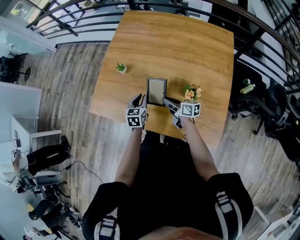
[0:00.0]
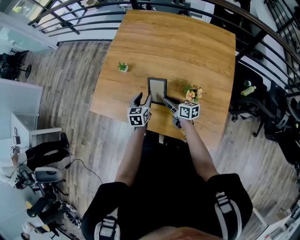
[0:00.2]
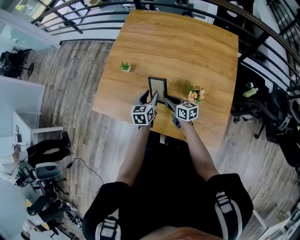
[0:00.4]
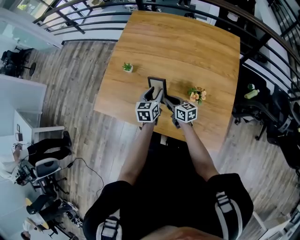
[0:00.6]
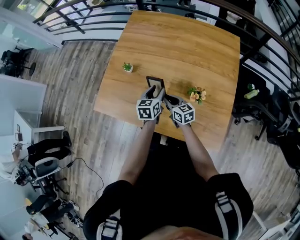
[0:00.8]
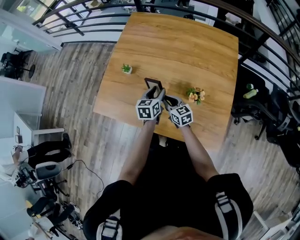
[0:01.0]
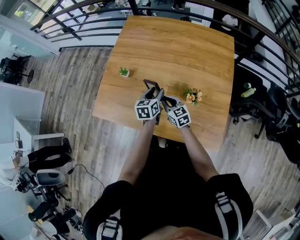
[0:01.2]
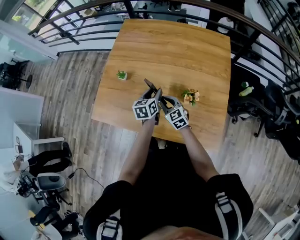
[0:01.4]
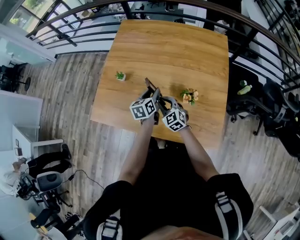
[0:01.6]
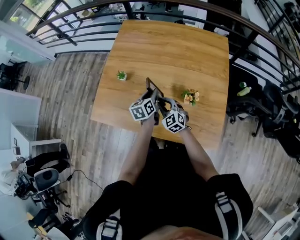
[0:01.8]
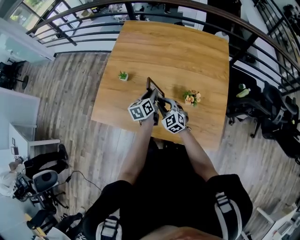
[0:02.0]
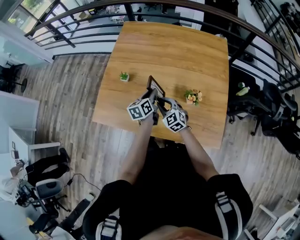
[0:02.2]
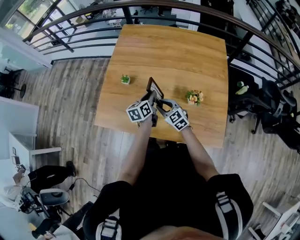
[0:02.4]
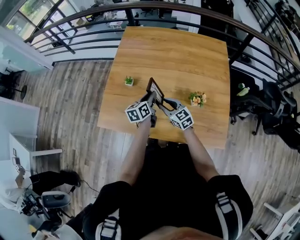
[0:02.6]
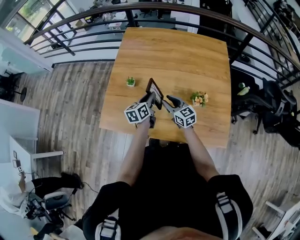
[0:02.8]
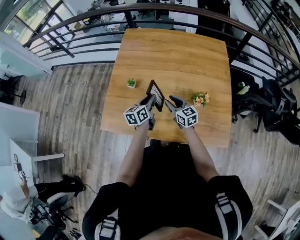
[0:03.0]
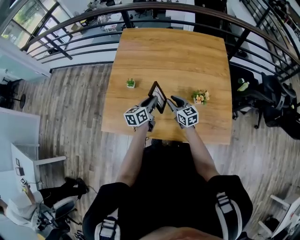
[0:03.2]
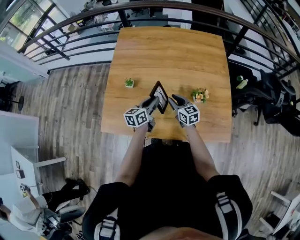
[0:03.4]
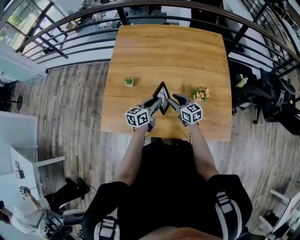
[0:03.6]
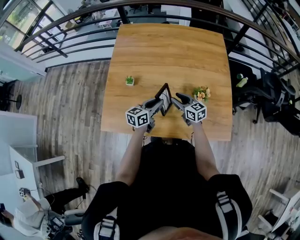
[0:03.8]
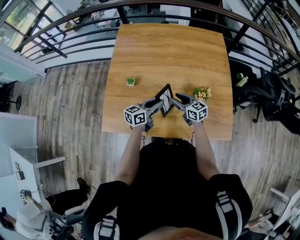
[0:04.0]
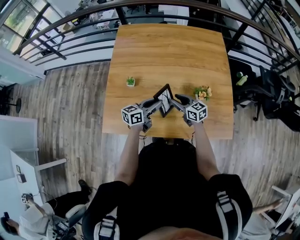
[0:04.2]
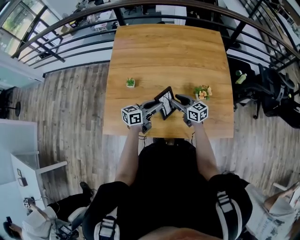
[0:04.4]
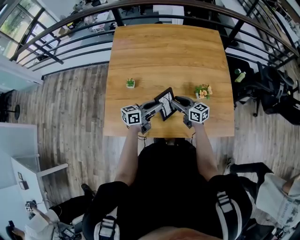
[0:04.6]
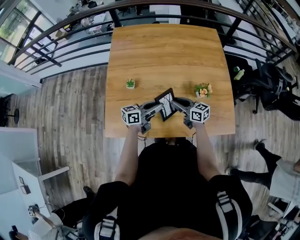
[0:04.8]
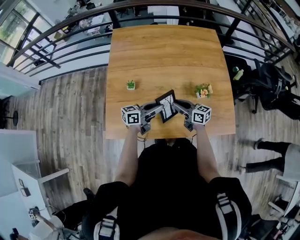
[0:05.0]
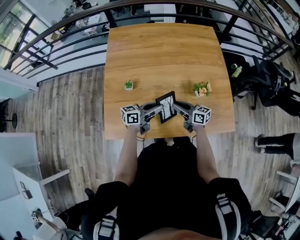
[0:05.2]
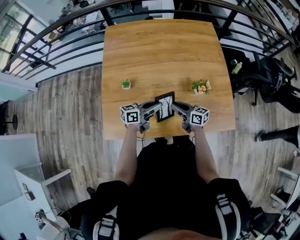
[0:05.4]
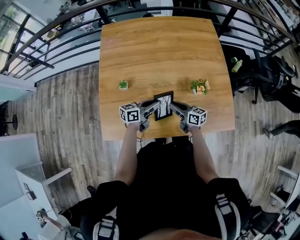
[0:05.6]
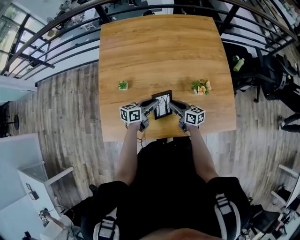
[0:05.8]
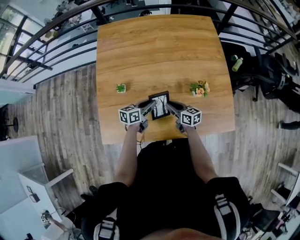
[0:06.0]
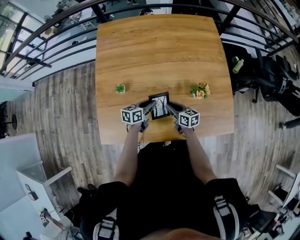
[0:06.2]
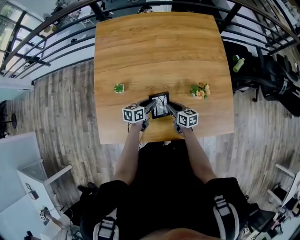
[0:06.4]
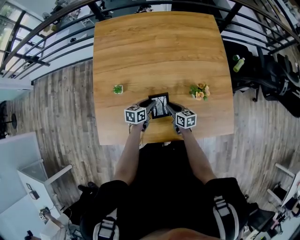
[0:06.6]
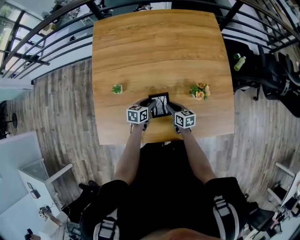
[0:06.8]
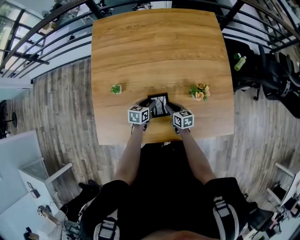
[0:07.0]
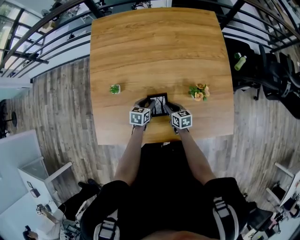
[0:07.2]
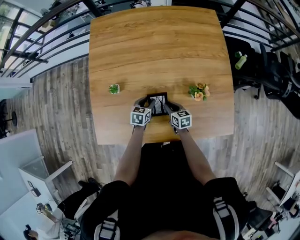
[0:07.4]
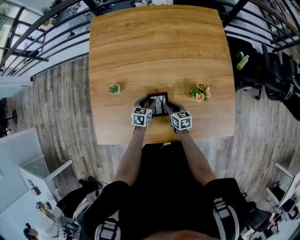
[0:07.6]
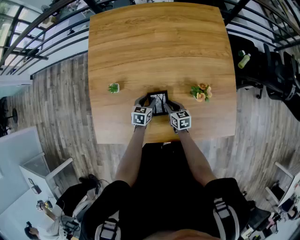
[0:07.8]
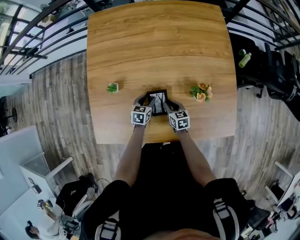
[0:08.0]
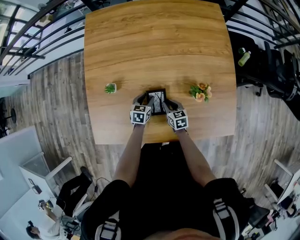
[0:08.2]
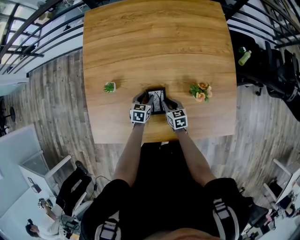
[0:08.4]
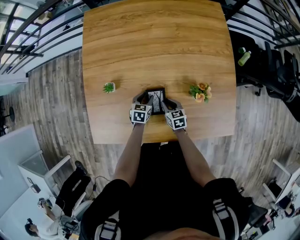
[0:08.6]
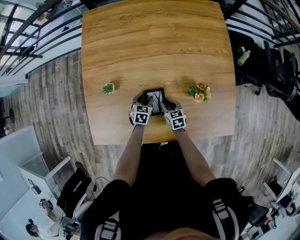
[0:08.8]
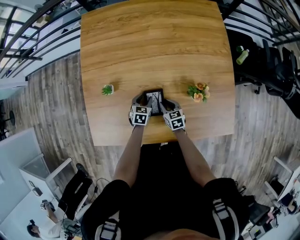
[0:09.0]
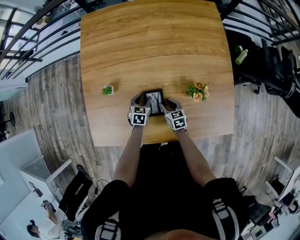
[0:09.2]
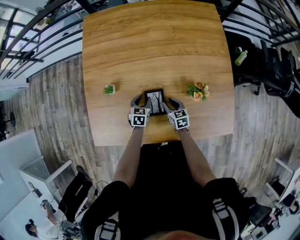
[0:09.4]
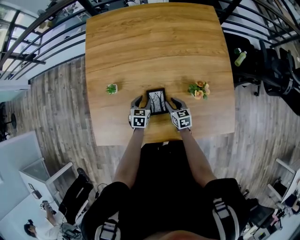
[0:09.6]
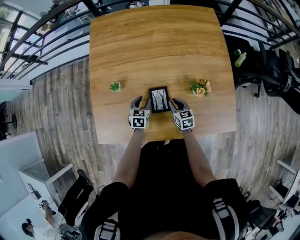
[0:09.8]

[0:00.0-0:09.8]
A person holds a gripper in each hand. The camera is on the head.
0:00.0 to 0:01.4: The left gripper shifts some 10 cm to the right and upward, and opens up. The right gripper moves some 5 cm, and rotates around the line of its fingers by about 60 degrees, counterclockwise from behind.
0:01.4 to 0:02.8: The right gripper heads to the left, covering about 5 cm, while the left gripper moves to the left, roughly 10 cm, and closes its fingers.
0:02.8 to 0:04.2: The left gripper changes its angle by about 40 degrees.
0:04.2 to 0:05.6: The right gripper changes place by about 5 cm, and changes its angle by about 30 degrees.
0:05.6 to 0:07.0: The left gripper is displaced downward and forward by about 15 cm, and tilts its fingers approximately 30 degrees downward, while the right gripper travels downward by approximately 10 cm, and rotates some 30 degrees.
0:07.0 to 0:08.4: The left gripper shifts by roughly 5 cm.
0:08.4 to 0:09.8: The left gripper ends up roughly 5 cm from where it was.

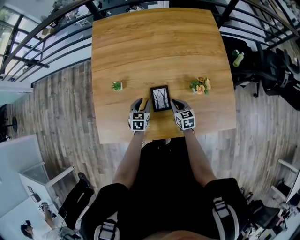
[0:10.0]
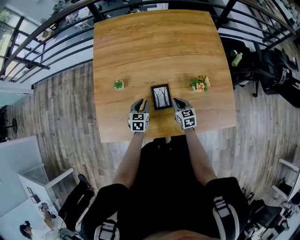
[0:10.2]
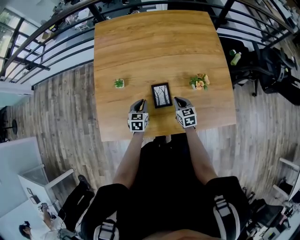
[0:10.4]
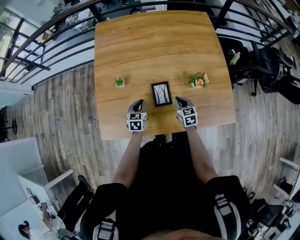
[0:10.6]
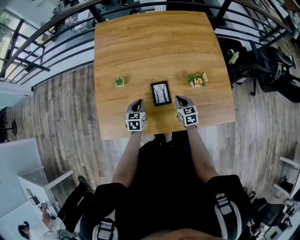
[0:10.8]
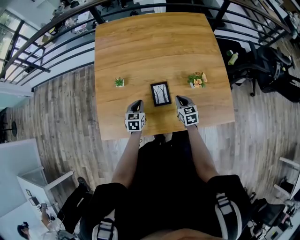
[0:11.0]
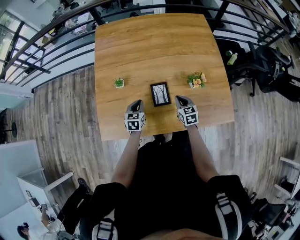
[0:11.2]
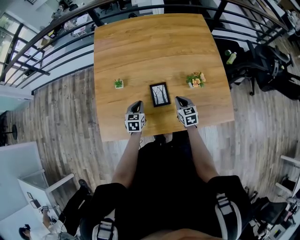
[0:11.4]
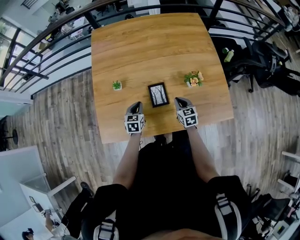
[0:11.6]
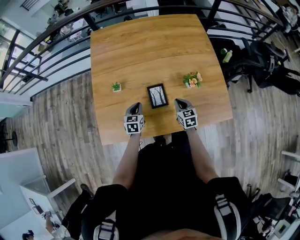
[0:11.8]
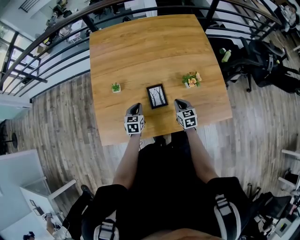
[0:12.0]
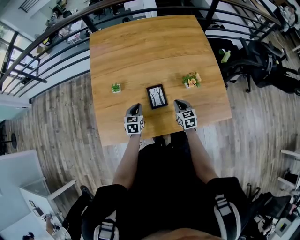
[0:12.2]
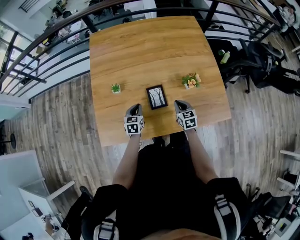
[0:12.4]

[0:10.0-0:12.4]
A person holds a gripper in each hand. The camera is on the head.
0:10.0 to 0:11.2: The right gripper shifts by some 5 cm. The left gripper ends up approximately 5 cm from where it was, and closes.
0:11.2 to 0:12.4: The grippers make only small movements.

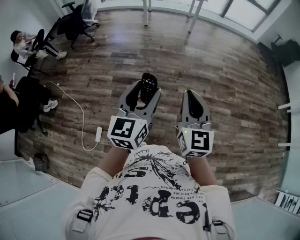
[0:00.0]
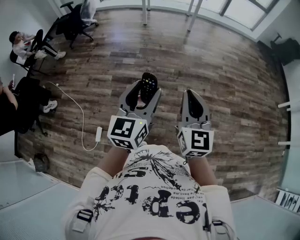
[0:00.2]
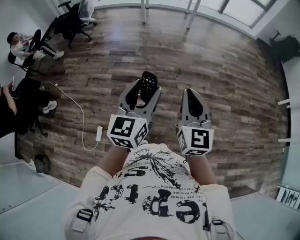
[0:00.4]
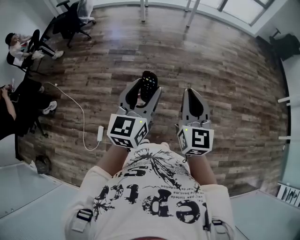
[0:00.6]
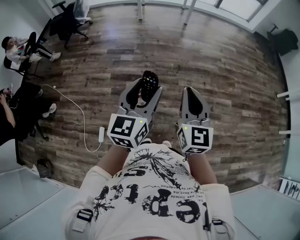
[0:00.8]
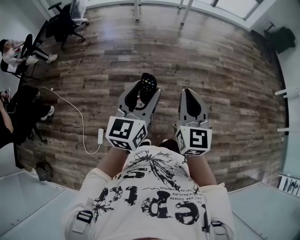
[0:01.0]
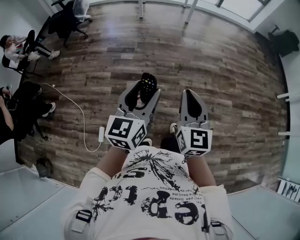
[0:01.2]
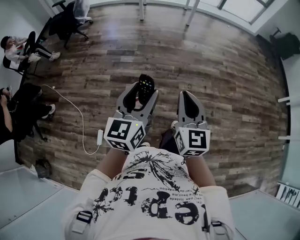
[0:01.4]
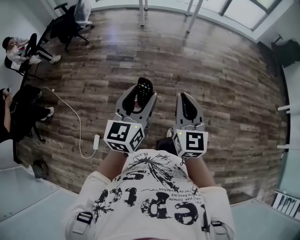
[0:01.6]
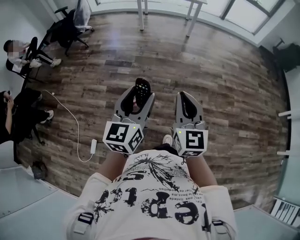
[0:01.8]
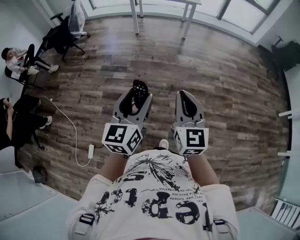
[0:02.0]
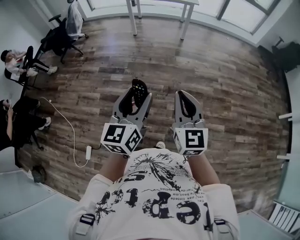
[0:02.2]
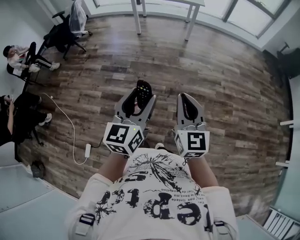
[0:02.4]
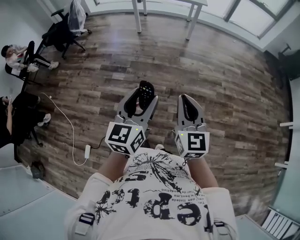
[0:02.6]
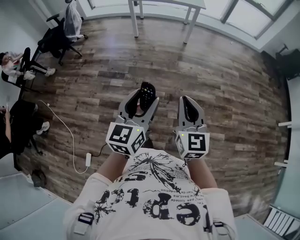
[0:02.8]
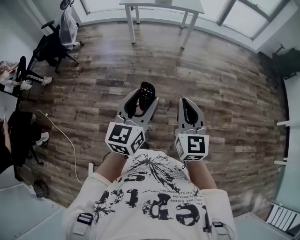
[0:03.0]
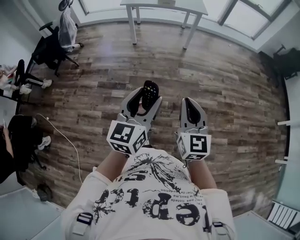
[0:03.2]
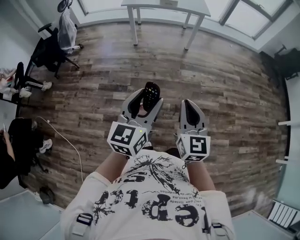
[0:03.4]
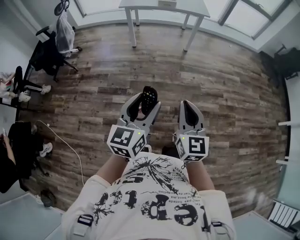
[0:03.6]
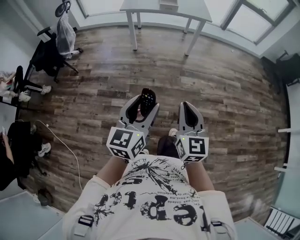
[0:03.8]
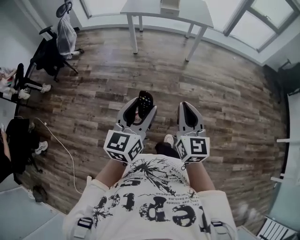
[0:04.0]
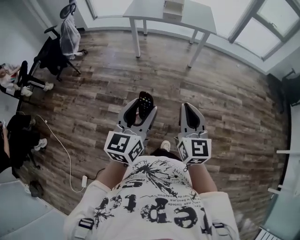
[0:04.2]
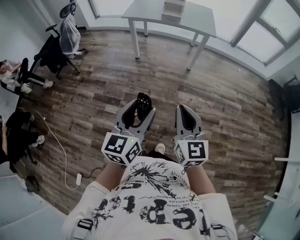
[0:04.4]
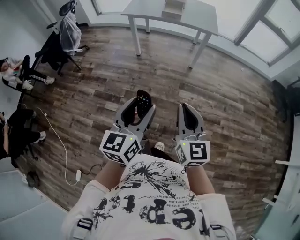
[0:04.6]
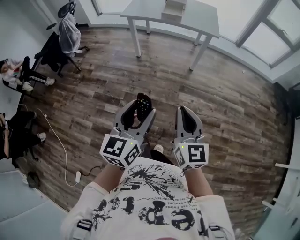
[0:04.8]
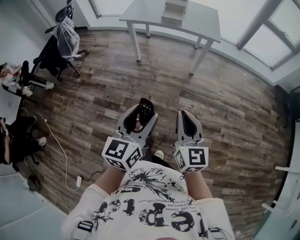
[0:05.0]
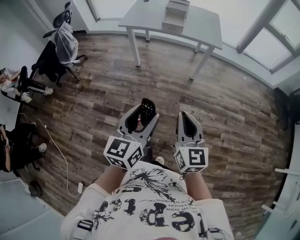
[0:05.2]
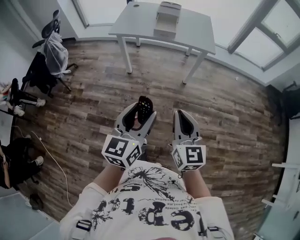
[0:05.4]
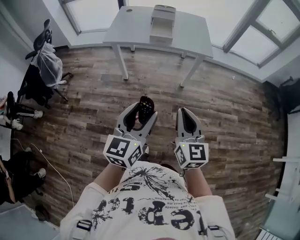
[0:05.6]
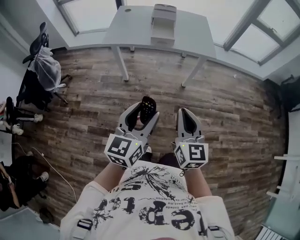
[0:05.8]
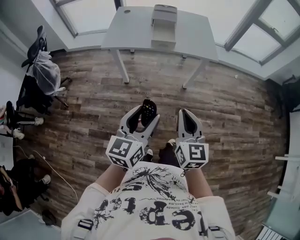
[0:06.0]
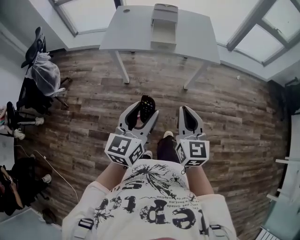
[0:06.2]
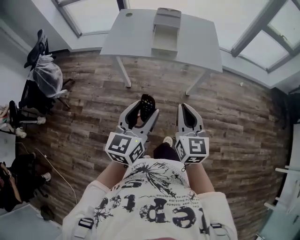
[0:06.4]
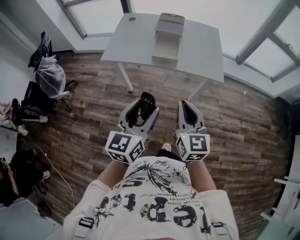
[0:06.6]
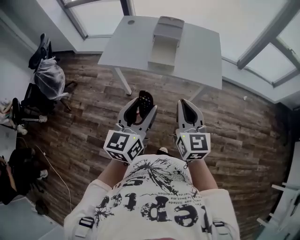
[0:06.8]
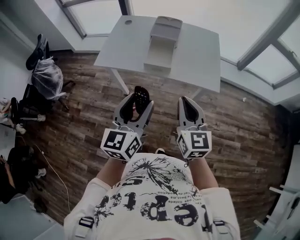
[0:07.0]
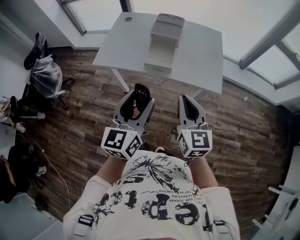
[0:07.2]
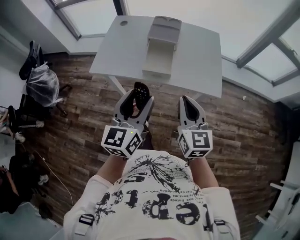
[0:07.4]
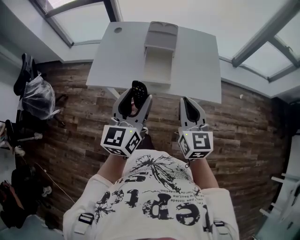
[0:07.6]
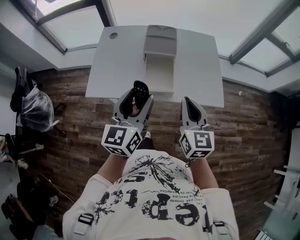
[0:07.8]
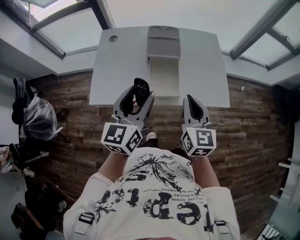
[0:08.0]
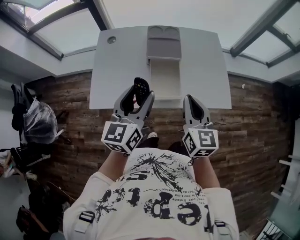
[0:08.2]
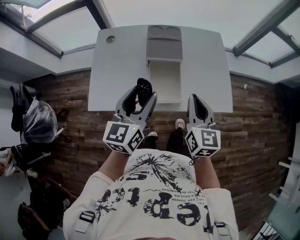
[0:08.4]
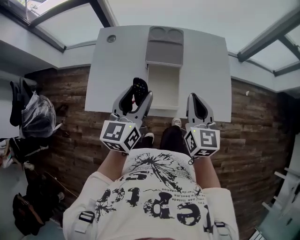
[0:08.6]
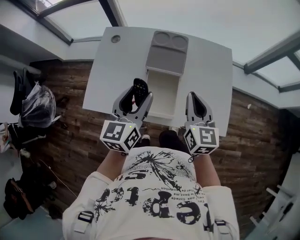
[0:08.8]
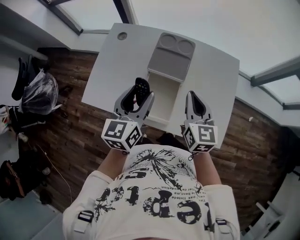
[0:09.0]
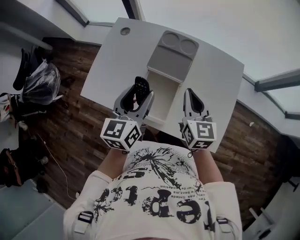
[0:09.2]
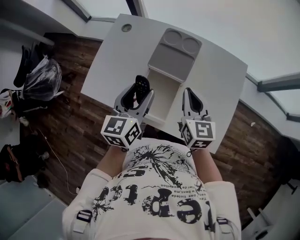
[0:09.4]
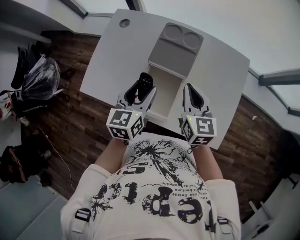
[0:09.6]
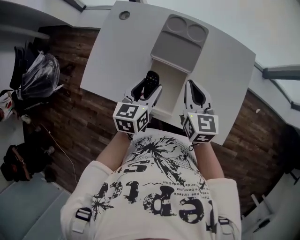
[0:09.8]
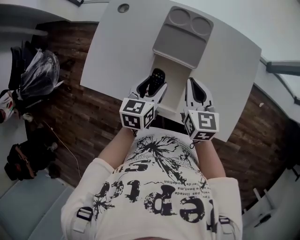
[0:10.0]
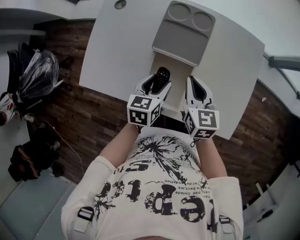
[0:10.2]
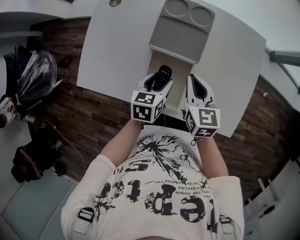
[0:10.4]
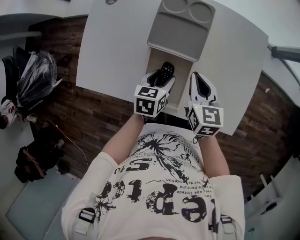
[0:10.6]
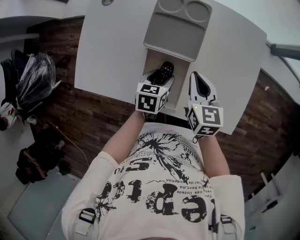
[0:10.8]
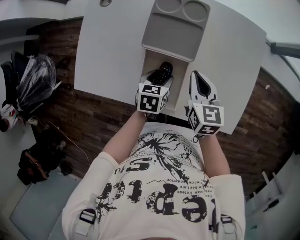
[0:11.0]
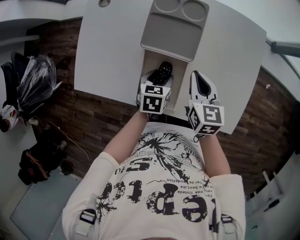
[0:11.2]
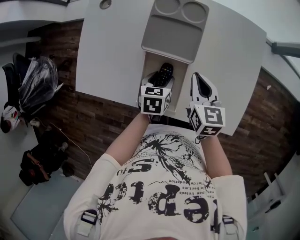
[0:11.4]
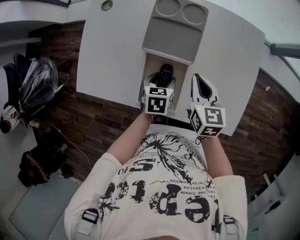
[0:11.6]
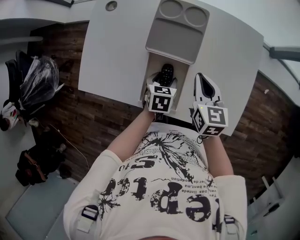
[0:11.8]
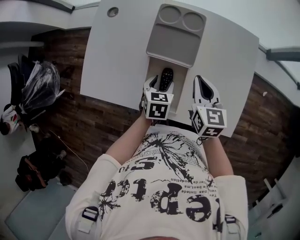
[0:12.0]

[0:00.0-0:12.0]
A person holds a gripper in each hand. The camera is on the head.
0:00.0 to 0:01.6: Both grippers travel together forward, about 10 cm.
0:01.6 to 0:03.0: Both grippers travel together forward, roughly 30 cm.
0:03.0 to 0:04.4: Both grippers travel together forward, some 25 cm.
0:04.4 to 0:06.0: The grippers both shift forward by some 35 cm.
0:06.0 to 0:07.6: Both grippers move forward, roughly 40 cm.
0:07.6 to 0:09.0: Both grippers travel together forward, roughly 30 cm.
0:09.0 to 0:10.4: The right gripper shifts some 10 cm downward, while the left gripper heads downward, covering roughly 20 cm, and tips its fingers downward by about 30 degrees.
